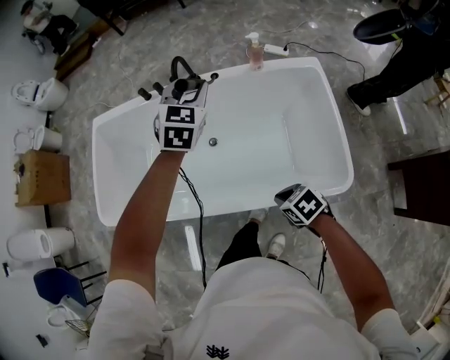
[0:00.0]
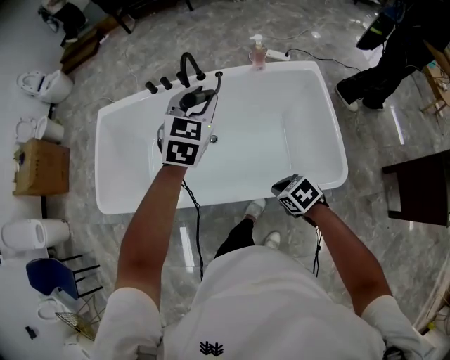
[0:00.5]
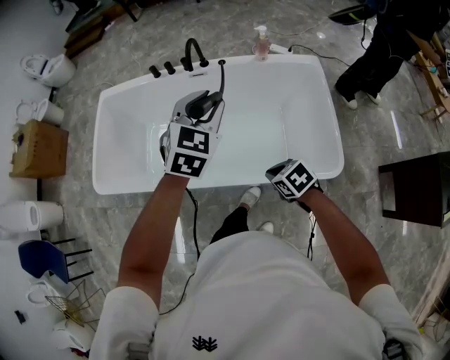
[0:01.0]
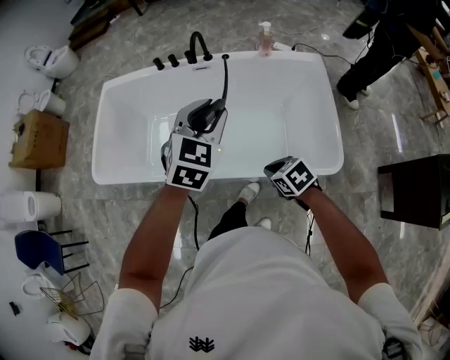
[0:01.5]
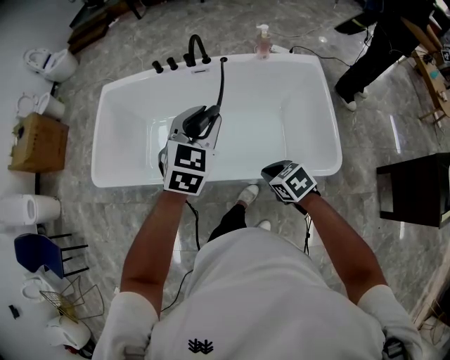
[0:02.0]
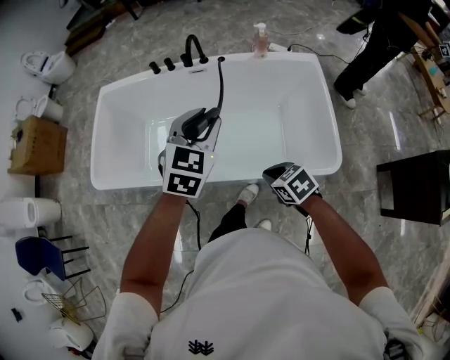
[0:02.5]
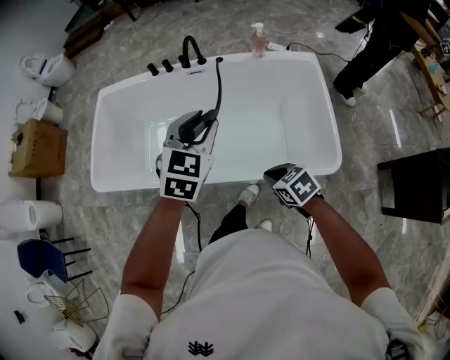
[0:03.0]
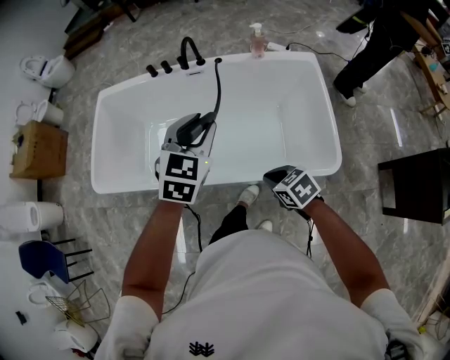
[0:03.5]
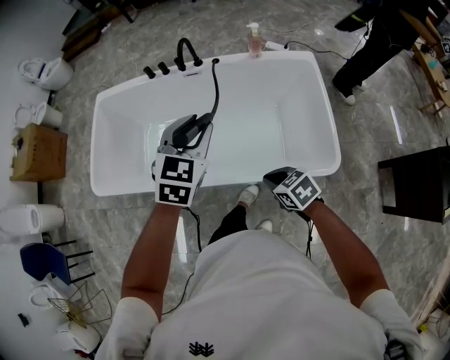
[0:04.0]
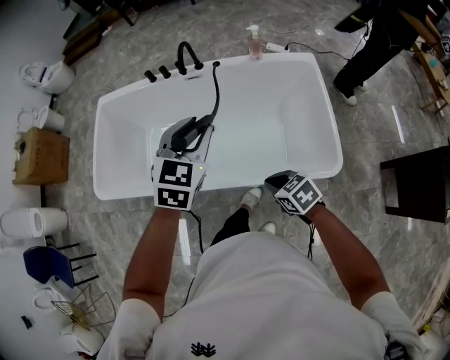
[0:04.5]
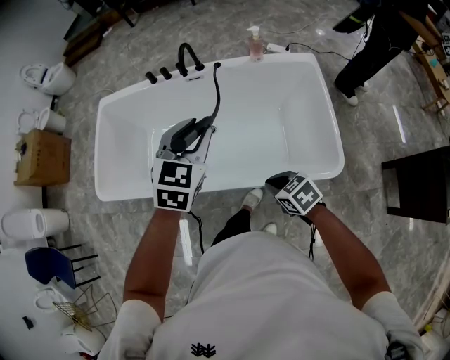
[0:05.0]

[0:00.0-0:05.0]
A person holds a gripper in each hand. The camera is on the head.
0:00.0 to 0:02.5: The left gripper heads backward and to the left, covering roughly 25 cm. Meanwhile the right gripper shifts about 10 cm to the left and backward.
0:02.5 to 0:05.0: The grippers move only a little.

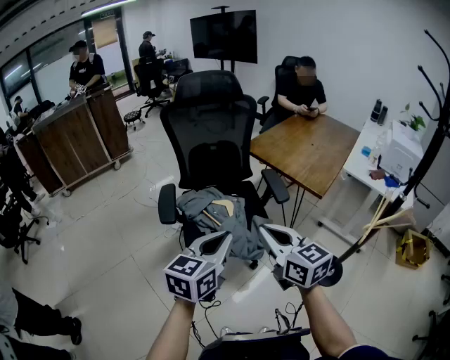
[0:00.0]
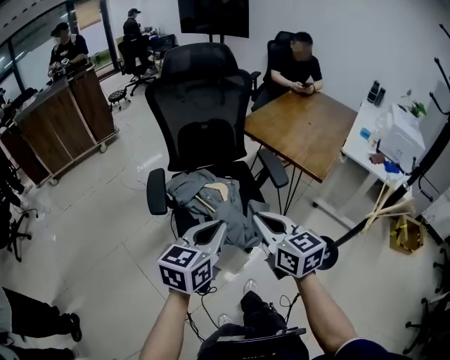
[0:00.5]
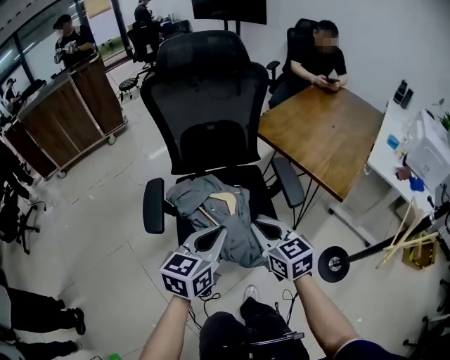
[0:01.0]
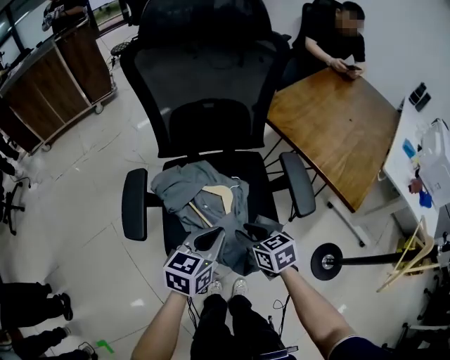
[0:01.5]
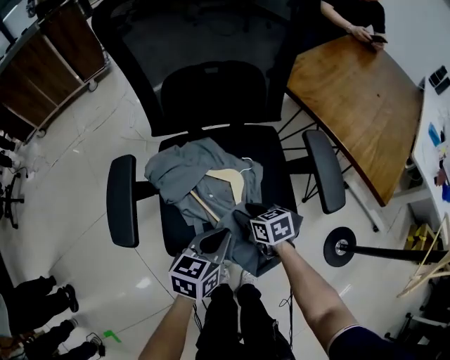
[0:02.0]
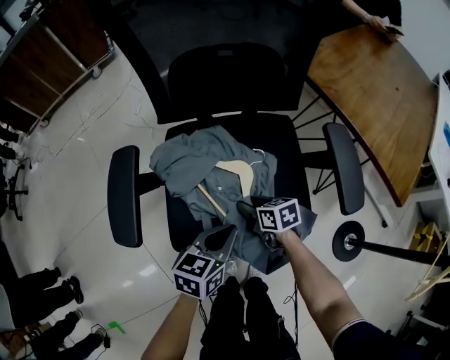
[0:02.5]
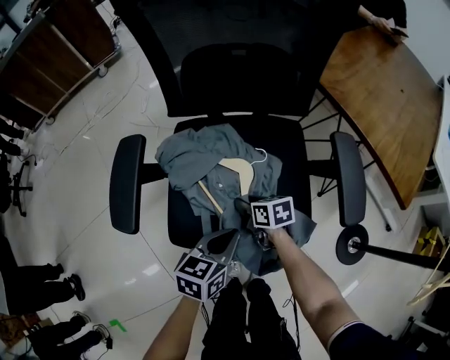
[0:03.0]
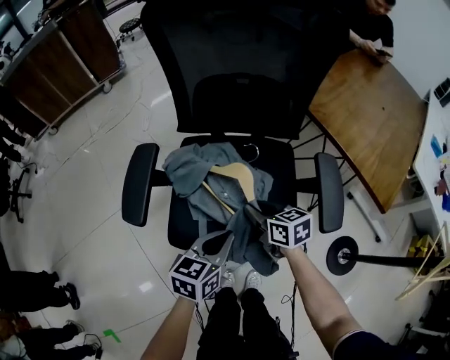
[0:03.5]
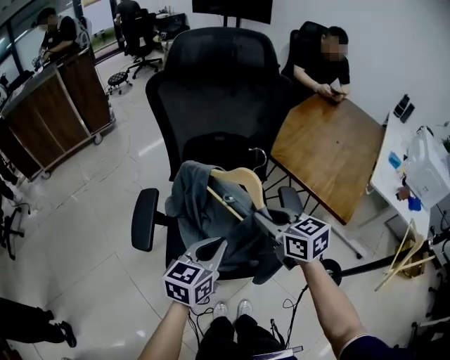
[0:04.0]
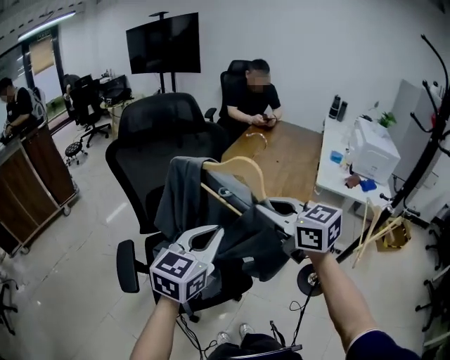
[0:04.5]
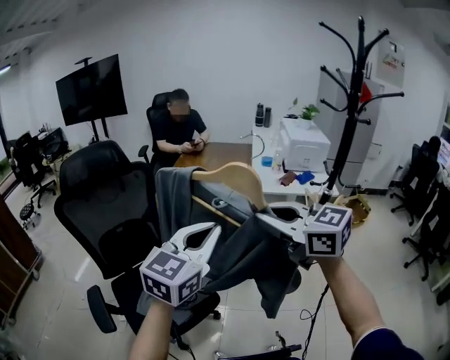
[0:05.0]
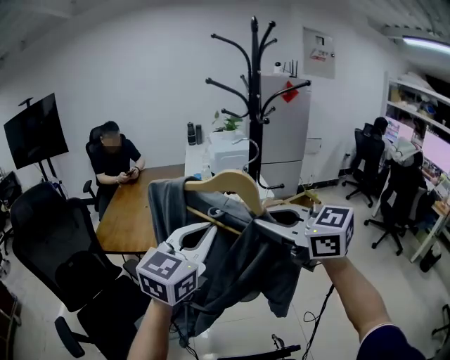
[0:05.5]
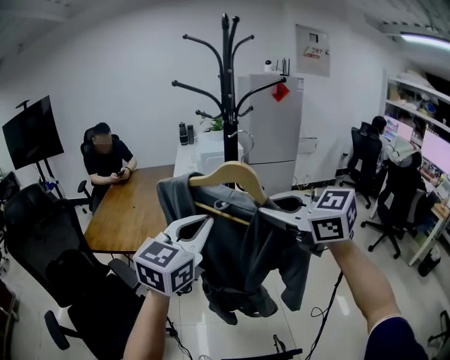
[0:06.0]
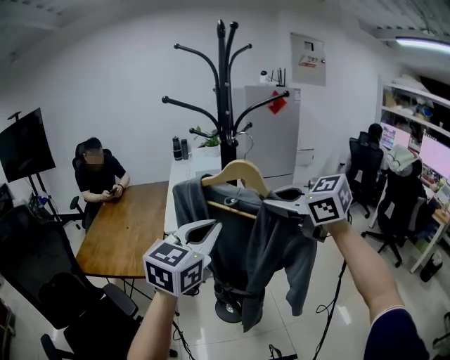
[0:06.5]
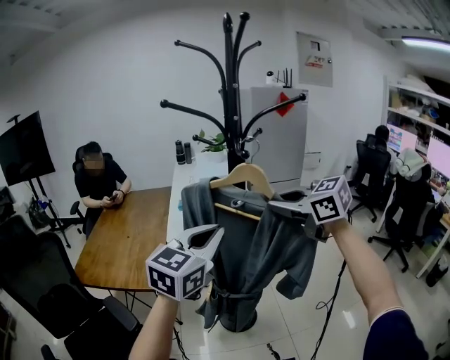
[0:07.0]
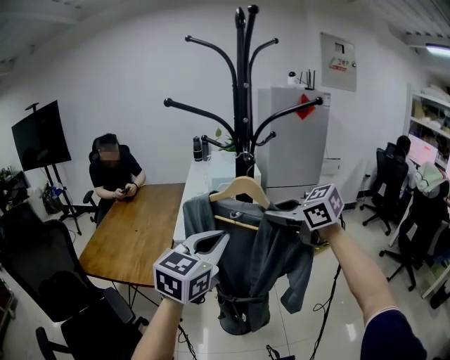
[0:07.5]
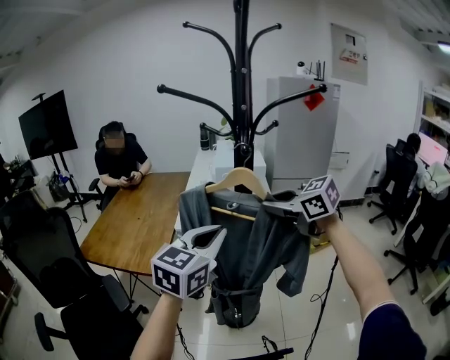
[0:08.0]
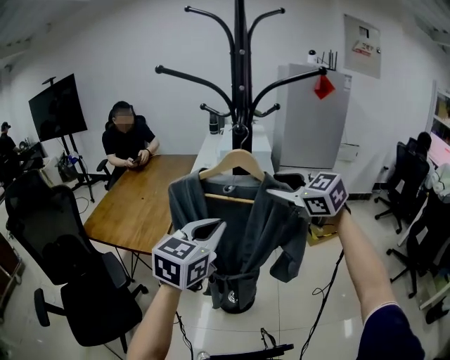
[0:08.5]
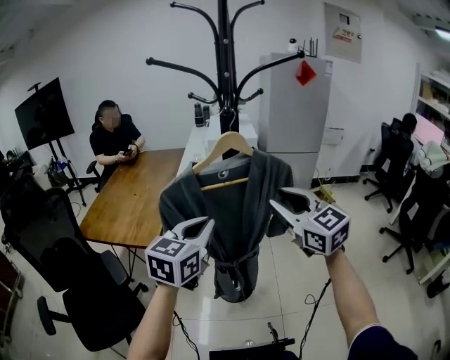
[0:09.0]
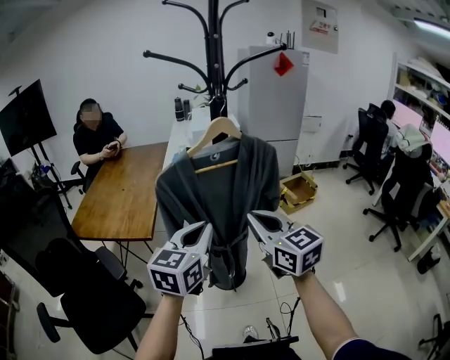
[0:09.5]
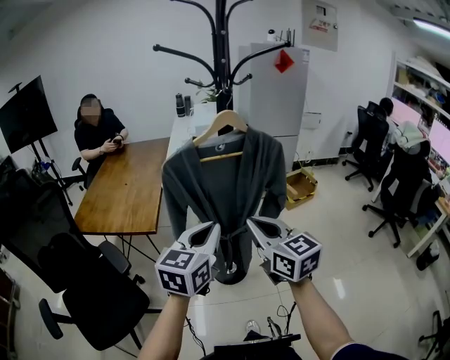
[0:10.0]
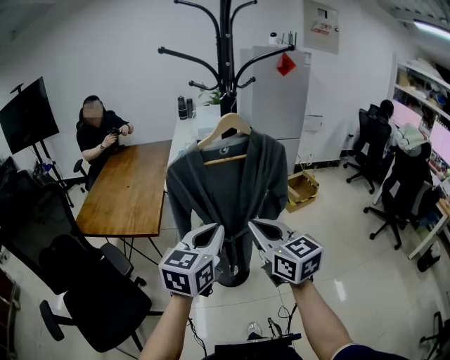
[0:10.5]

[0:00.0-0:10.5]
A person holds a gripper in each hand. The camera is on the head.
0:00.0 to 0:02.0: The grippers both shift downward and forward by some 50 cm. The right gripper tilts its fingers roughly 40 degrees downward, and opens its fingers; the left gripper rotates some 20 degrees.
0:02.0 to 0:04.0: The right gripper travels upward by roughly 35 cm, rotates roughly 30 degrees, and closes up, while the left gripper shifts about 20 cm upward.
0:04.0 to 0:06.5: Both grippers are carried roughly 70 cm. The left gripper turns by roughly 70 degrees. Meanwhile the right gripper swivels approximately 50 degrees.
0:06.5 to 0:08.5: The left gripper travels forward and downward by roughly 10 cm. The right gripper shifts some 15 cm forward, and opens its fingers.
0:08.5 to 0:10.5: The left gripper shifts approximately 15 cm backward and downward. Meanwhile the right gripper goes about 25 cm backward and downward, changes its angle by about 30 degrees, and closes.

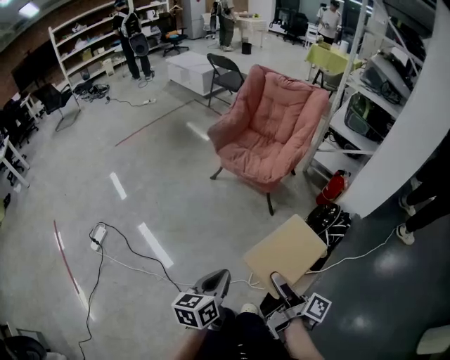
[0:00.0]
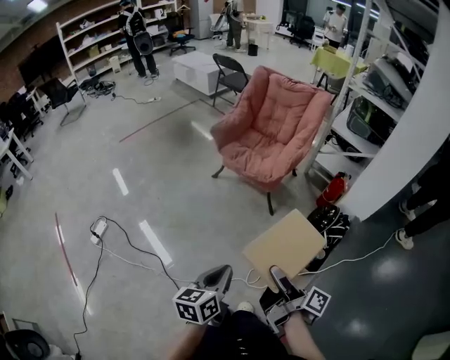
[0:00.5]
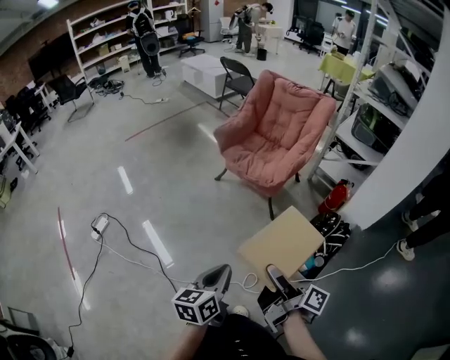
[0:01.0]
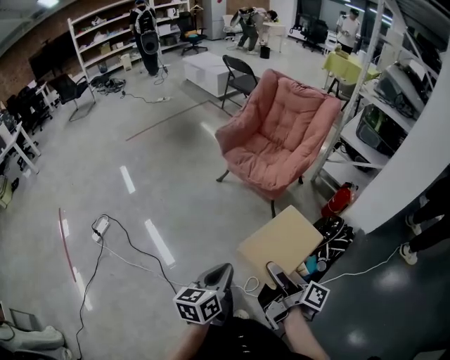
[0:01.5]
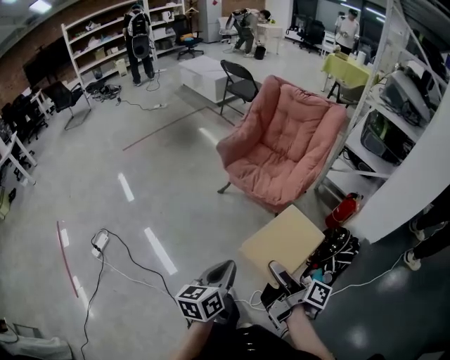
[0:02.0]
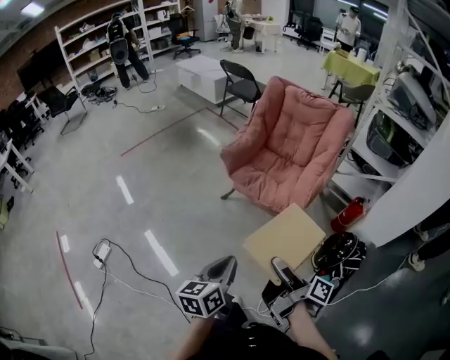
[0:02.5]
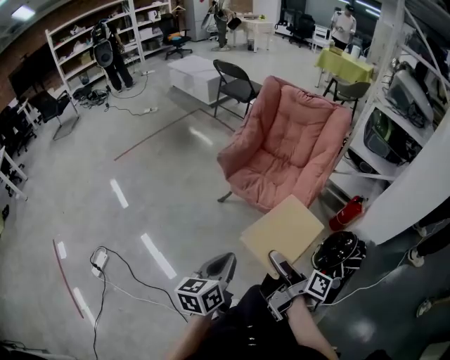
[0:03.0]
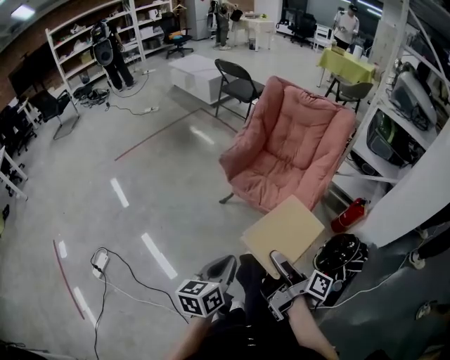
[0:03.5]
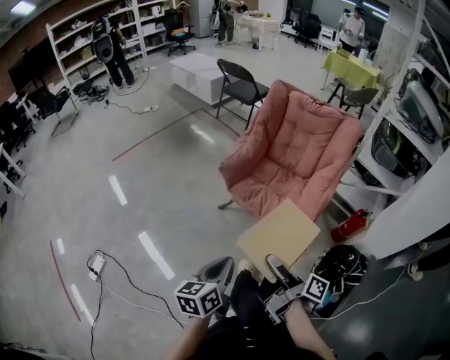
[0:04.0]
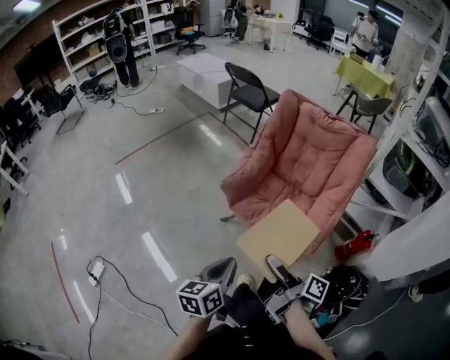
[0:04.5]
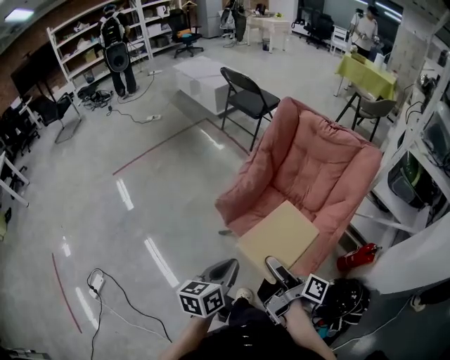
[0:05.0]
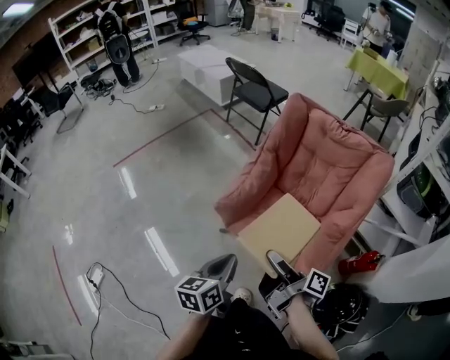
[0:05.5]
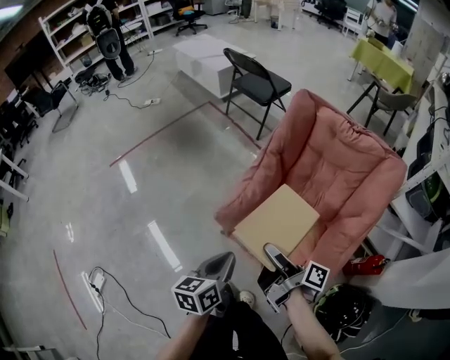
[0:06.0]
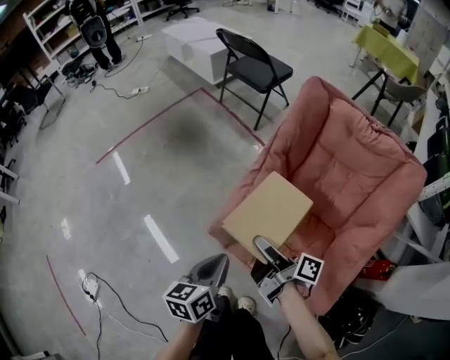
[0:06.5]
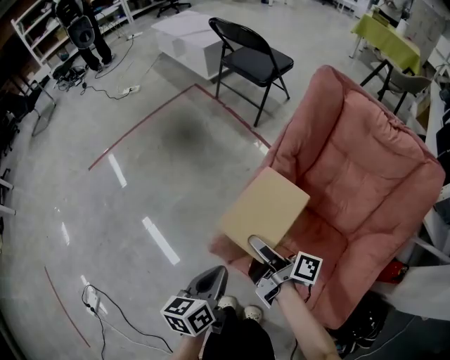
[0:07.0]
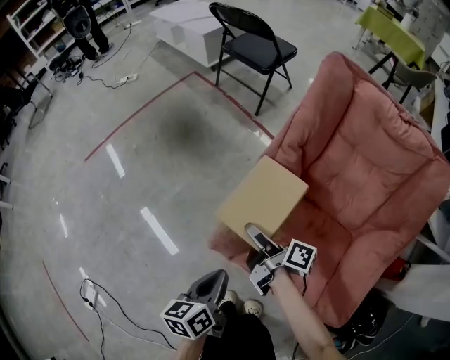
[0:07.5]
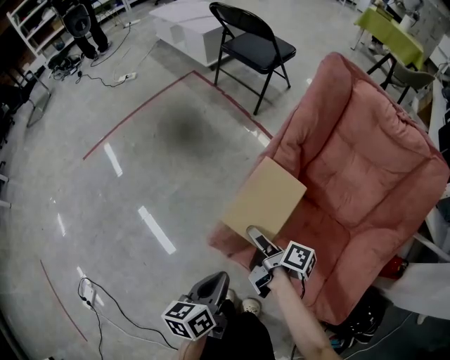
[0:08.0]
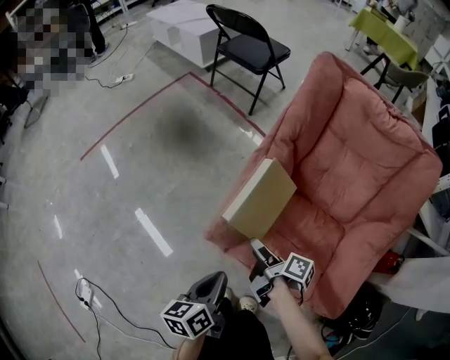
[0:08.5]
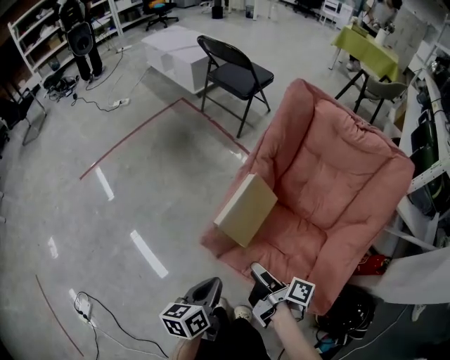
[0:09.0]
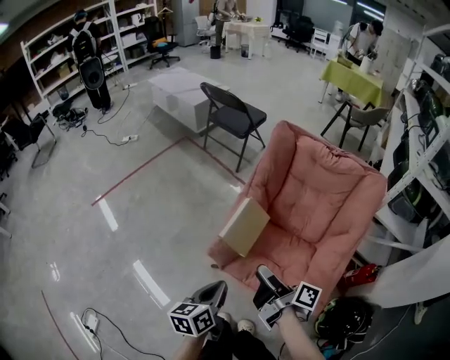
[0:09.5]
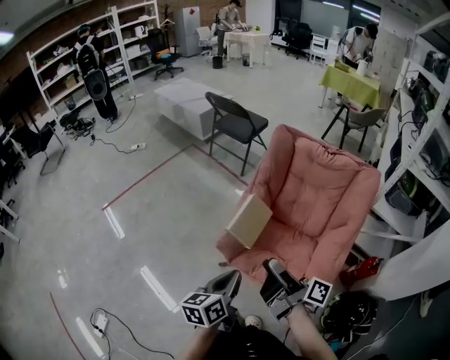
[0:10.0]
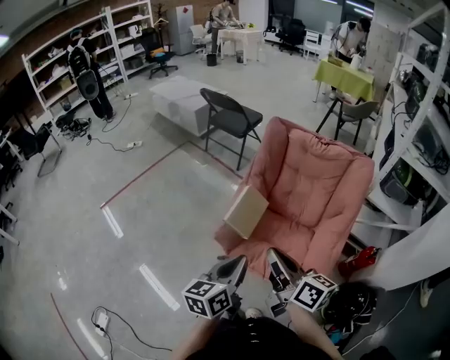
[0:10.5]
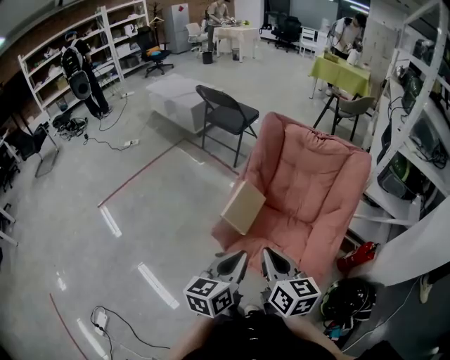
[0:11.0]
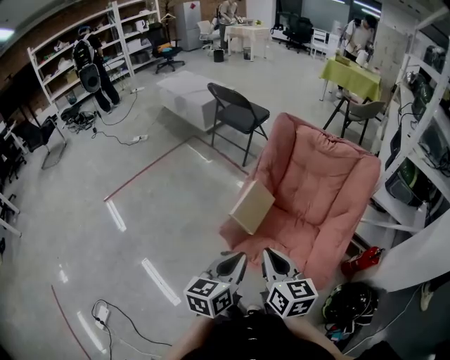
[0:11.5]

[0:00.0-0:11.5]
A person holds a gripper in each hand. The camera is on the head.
0:00.0 to 0:02.0: The left gripper shifts by about 15 cm.
0:02.0 to 0:04.0: The left gripper shifts by some 25 cm.
0:04.0 to 0:06.0: The left gripper shifts by roughly 40 cm.
0:06.0 to 0:07.5: The left gripper heads downward, covering some 20 cm.
0:07.5 to 0:09.5: The left gripper goes approximately 20 cm upward.
0:09.5 to 0:11.5: The left gripper is displaced upward by some 10 cm.
